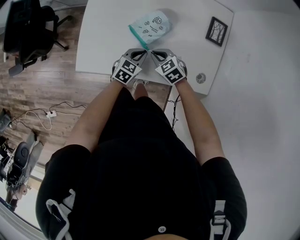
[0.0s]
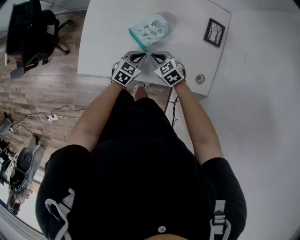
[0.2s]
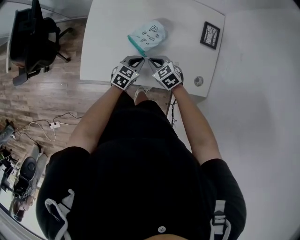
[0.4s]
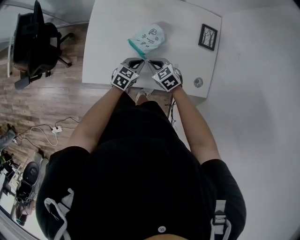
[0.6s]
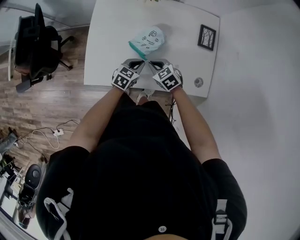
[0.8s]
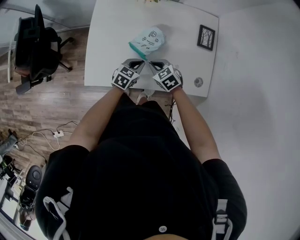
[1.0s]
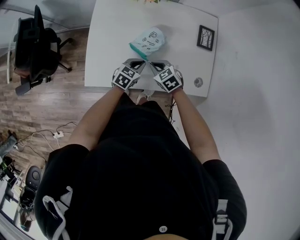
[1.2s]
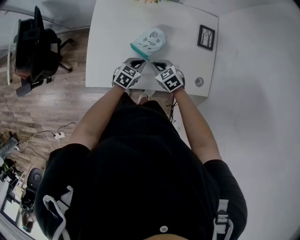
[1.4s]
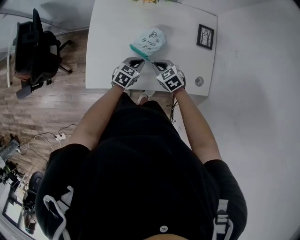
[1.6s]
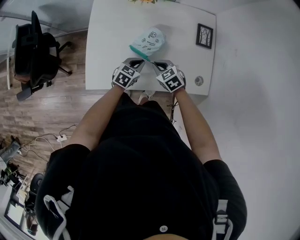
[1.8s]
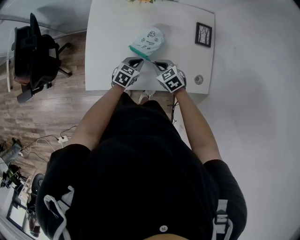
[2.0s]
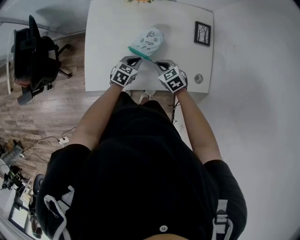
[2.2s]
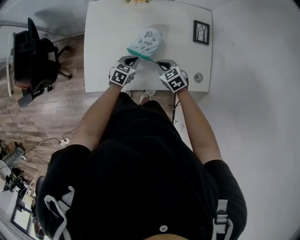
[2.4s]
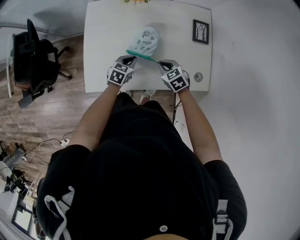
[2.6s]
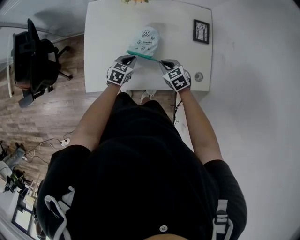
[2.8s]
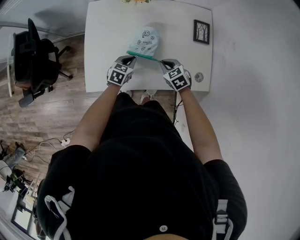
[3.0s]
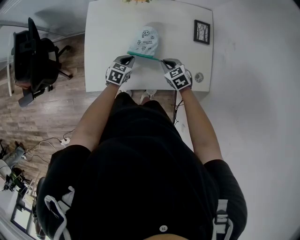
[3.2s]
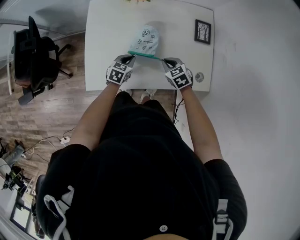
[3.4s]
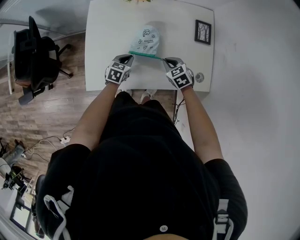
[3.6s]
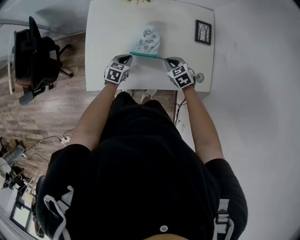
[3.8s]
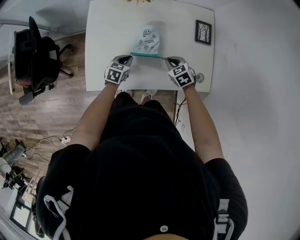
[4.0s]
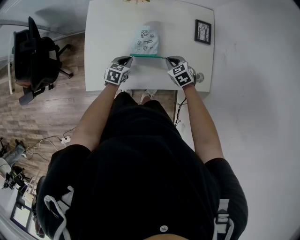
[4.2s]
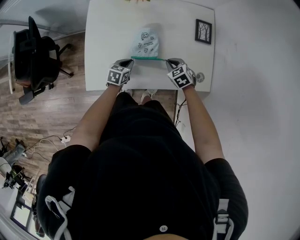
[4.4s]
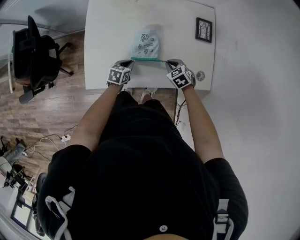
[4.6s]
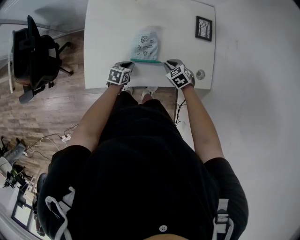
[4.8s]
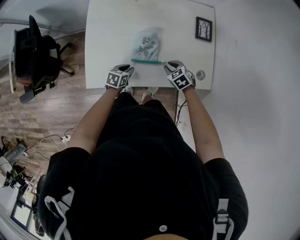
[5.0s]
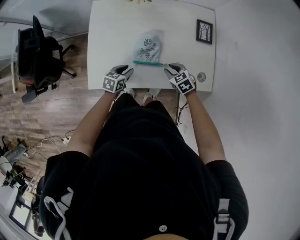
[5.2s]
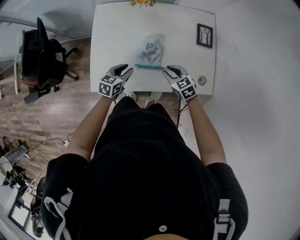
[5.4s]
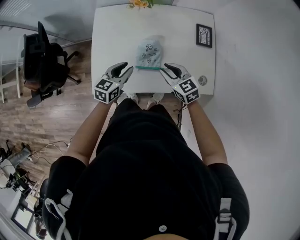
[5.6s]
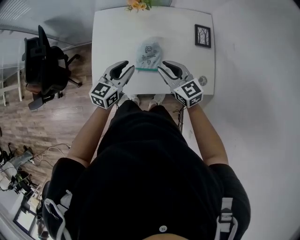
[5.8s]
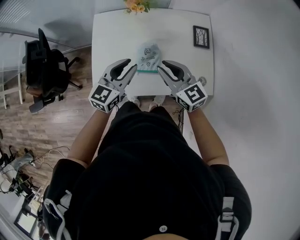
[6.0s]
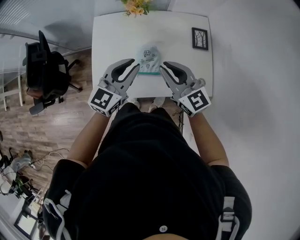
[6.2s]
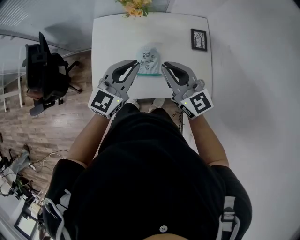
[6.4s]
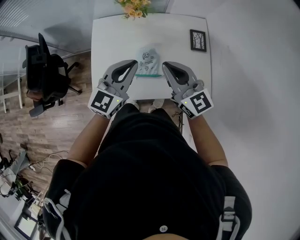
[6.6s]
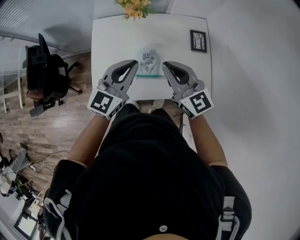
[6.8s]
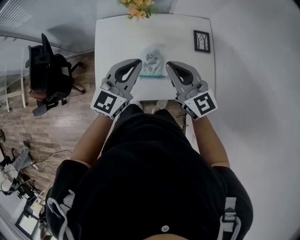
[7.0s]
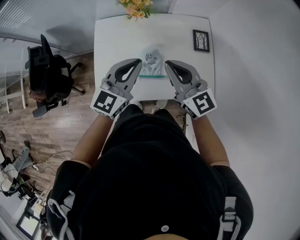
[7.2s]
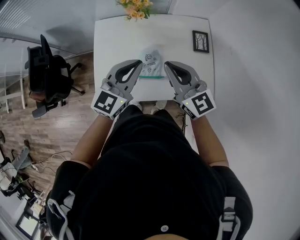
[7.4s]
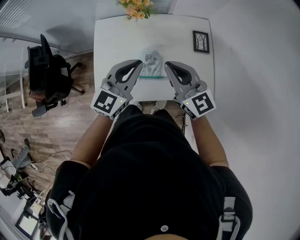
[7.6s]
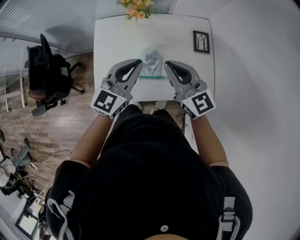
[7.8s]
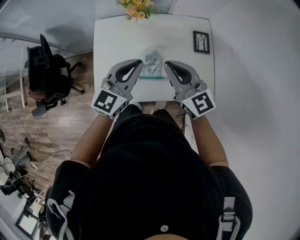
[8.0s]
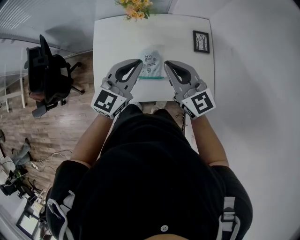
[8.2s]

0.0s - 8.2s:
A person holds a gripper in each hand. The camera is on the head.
0.0s - 1.6s: The left gripper changes place by approximately 5 cm. The right gripper ends up about 5 cm from where it was.
1.6s - 3.2s: The right gripper heads to the right, covering approximately 5 cm.
3.2s - 5.0s: The right gripper shifts by roughly 5 cm; the left gripper travels backward and downward by approximately 10 cm.
5.0s - 6.6s: Both grippers move upward, some 35 cm. The right gripper tips its fingers upward by roughly 60 degrees. The left gripper tips its fingers upward by approximately 40 degrees.
6.6s - 8.2s: The grippers make only small movements.

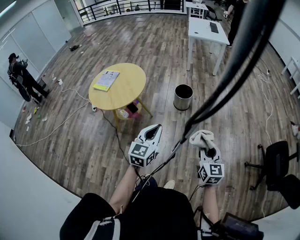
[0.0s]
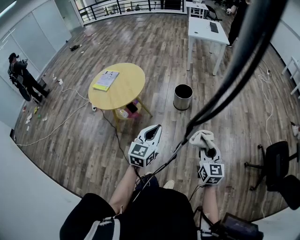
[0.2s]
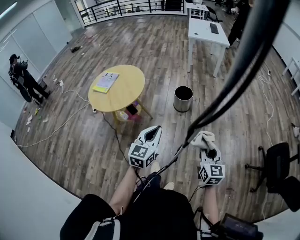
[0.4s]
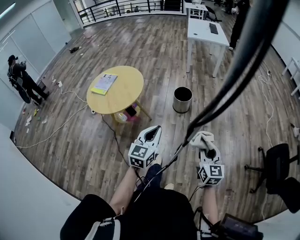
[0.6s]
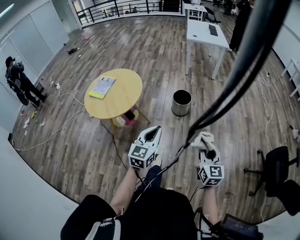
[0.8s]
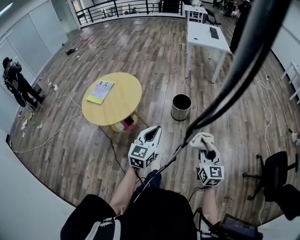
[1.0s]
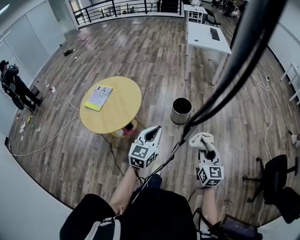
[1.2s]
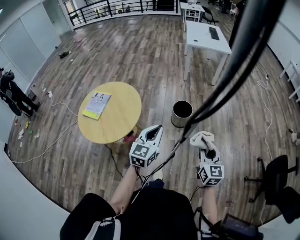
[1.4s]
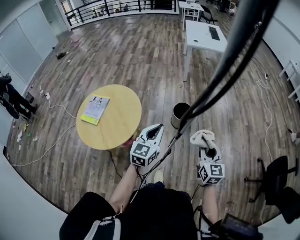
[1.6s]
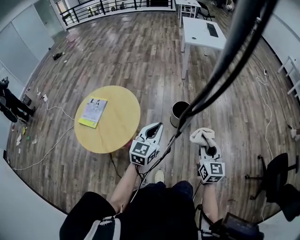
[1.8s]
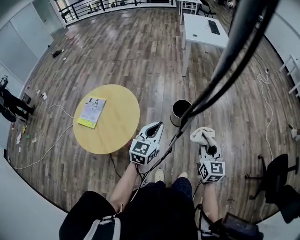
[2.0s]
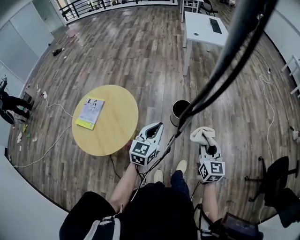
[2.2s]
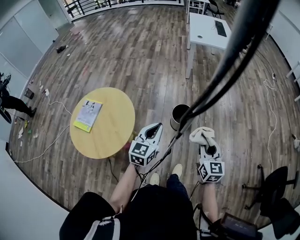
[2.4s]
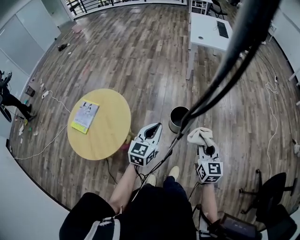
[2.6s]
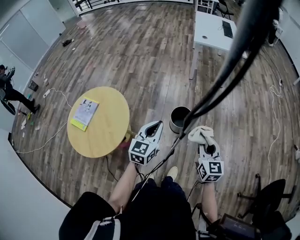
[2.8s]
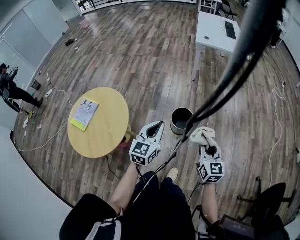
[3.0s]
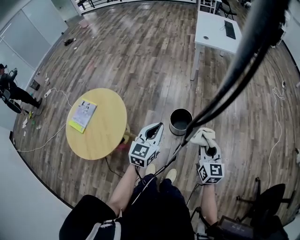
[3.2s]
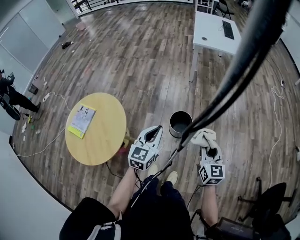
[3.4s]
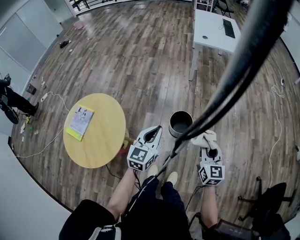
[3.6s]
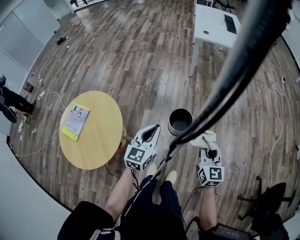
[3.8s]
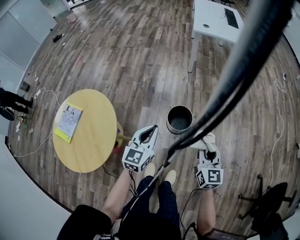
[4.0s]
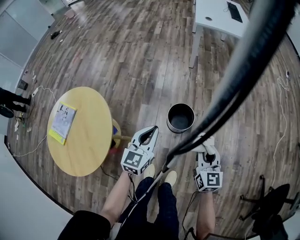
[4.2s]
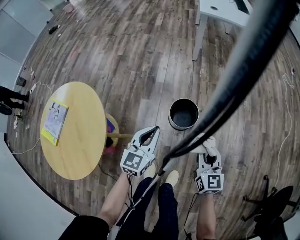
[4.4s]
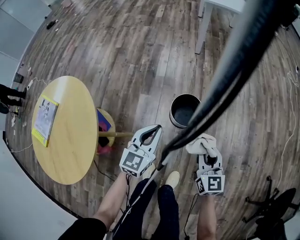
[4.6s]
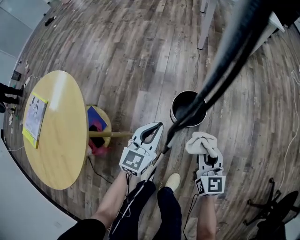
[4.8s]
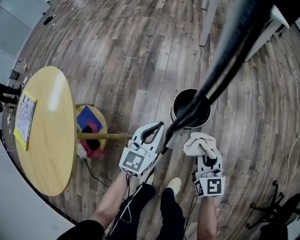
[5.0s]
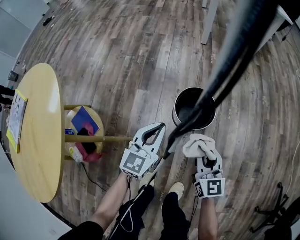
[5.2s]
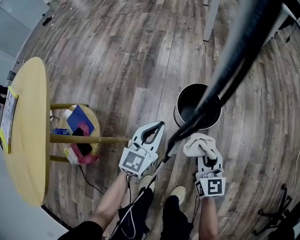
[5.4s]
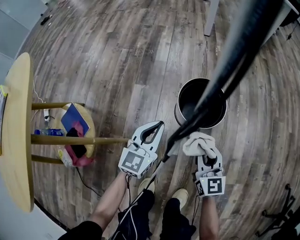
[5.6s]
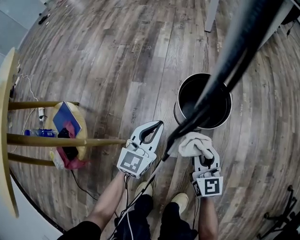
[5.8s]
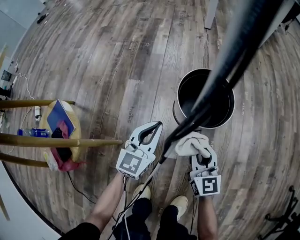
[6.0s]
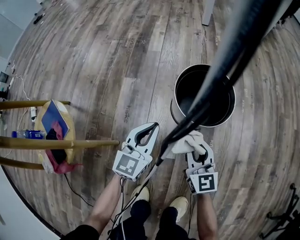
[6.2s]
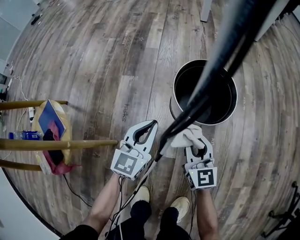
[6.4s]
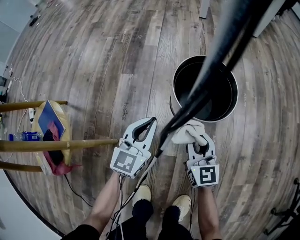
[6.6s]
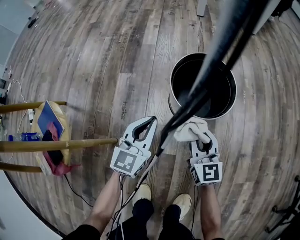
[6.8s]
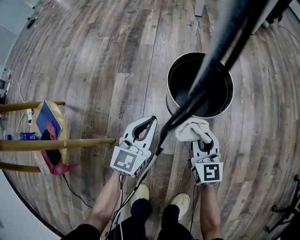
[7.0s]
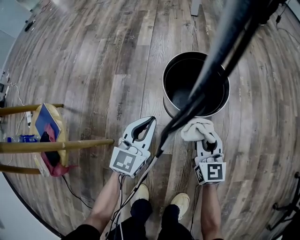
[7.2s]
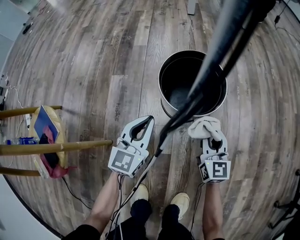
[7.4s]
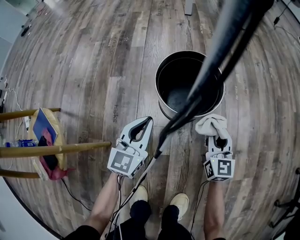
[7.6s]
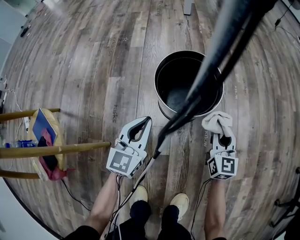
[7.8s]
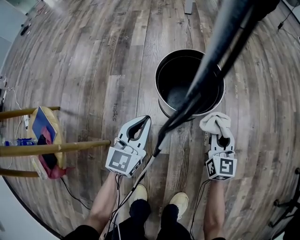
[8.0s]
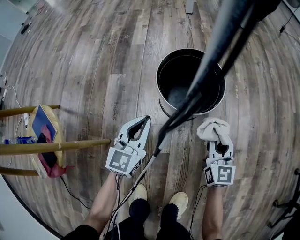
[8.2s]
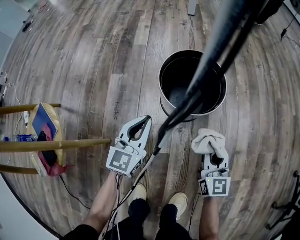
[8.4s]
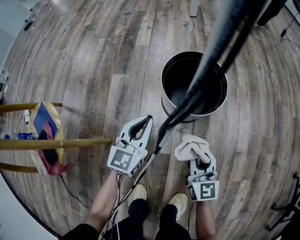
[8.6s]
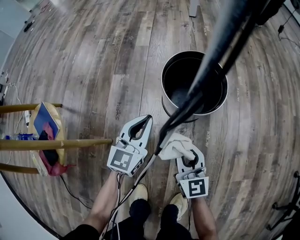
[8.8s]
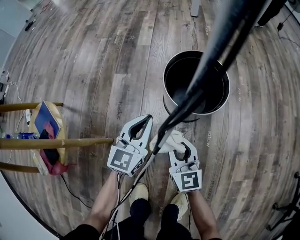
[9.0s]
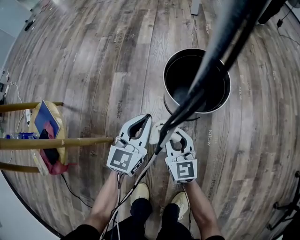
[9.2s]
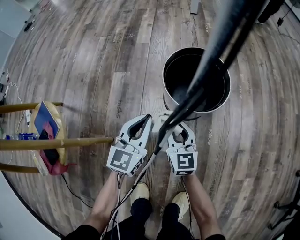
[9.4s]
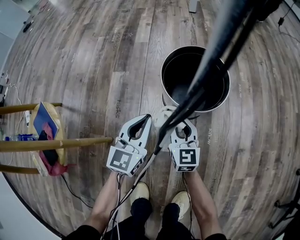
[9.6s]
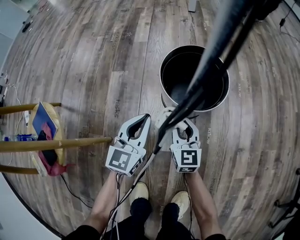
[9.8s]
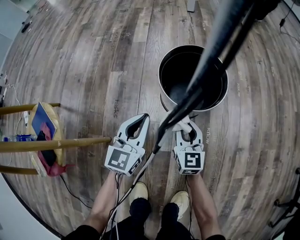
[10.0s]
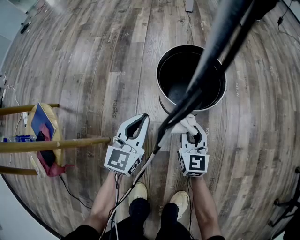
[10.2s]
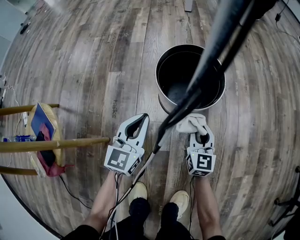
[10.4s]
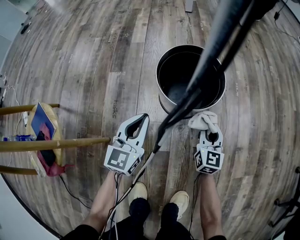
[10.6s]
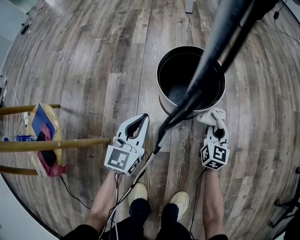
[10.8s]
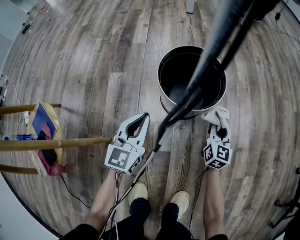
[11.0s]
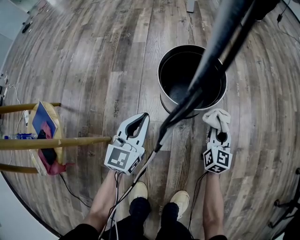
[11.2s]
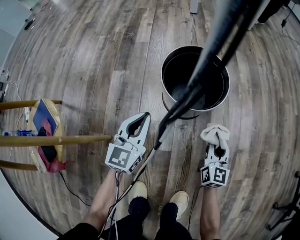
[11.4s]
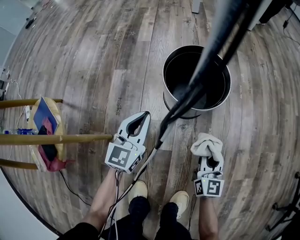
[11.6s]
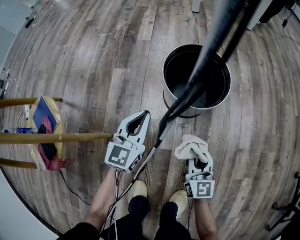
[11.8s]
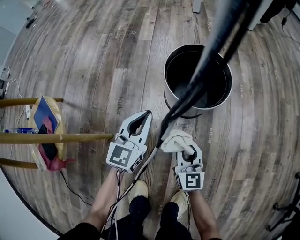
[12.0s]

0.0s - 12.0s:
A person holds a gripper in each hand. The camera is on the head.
0.0s - 1.6s: Both grippers move forward, some 30 cm.
1.6s - 3.0s: The two grippers go some 20 cm forward.
3.0s - 4.4s: Both grippers travel together downward and forward, about 25 cm.
4.4s - 6.0s: Both grippers travel together downward, approximately 50 cm.
6.0s - 7.6s: The right gripper heads to the right and downward, covering approximately 15 cm.
7.6s - 9.0s: The right gripper goes some 20 cm to the left and backward.
9.0s - 10.4s: The right gripper is displaced to the right, forward and downward by some 15 cm, and rotates roughly 20 degrees.
10.4s - 12.0s: The right gripper moves backward and to the left, roughly 10 cm.

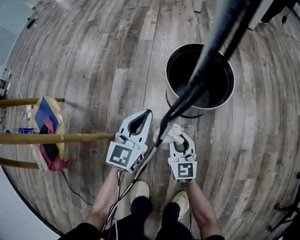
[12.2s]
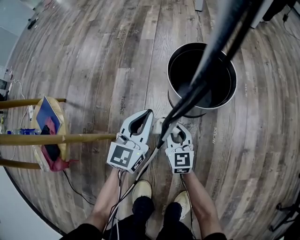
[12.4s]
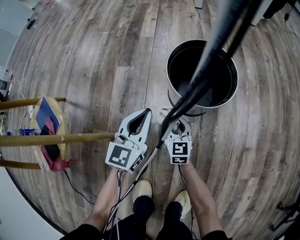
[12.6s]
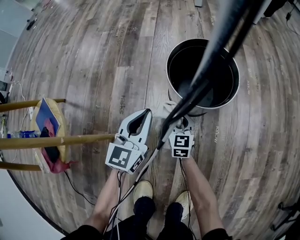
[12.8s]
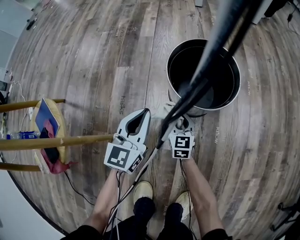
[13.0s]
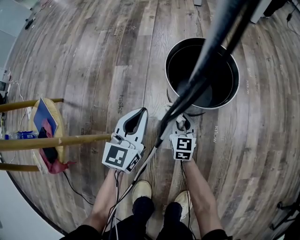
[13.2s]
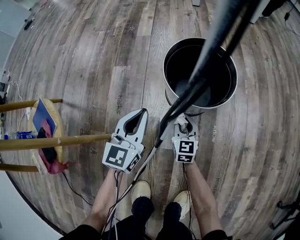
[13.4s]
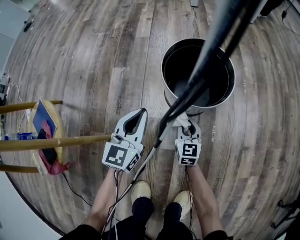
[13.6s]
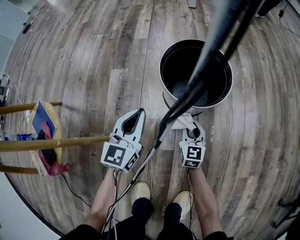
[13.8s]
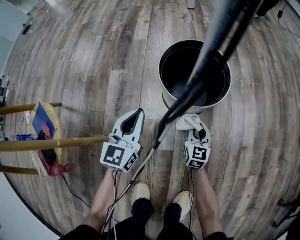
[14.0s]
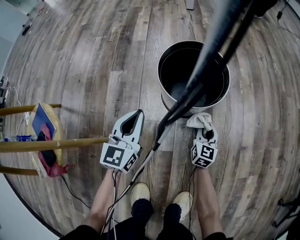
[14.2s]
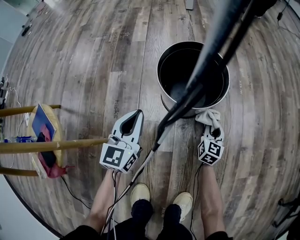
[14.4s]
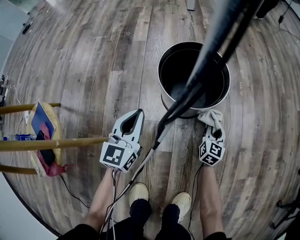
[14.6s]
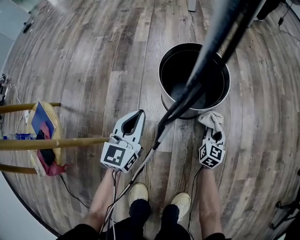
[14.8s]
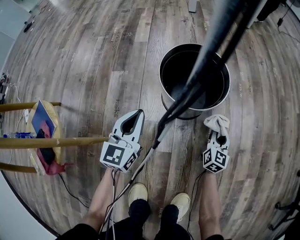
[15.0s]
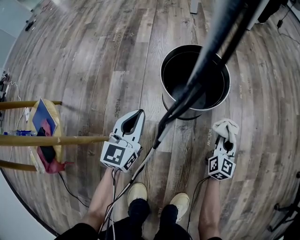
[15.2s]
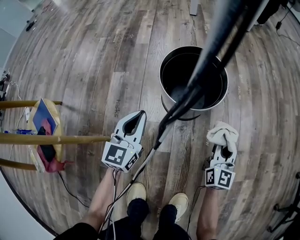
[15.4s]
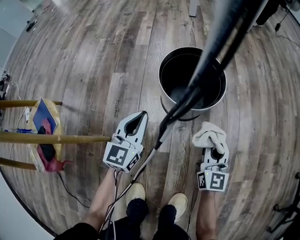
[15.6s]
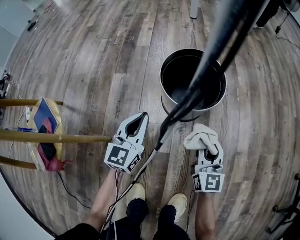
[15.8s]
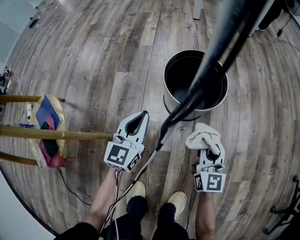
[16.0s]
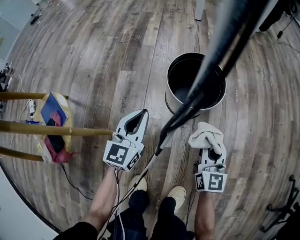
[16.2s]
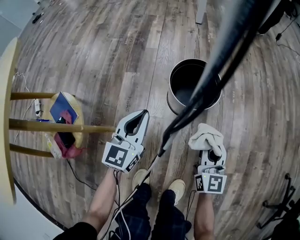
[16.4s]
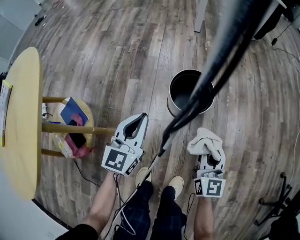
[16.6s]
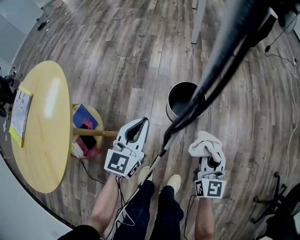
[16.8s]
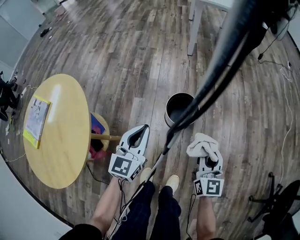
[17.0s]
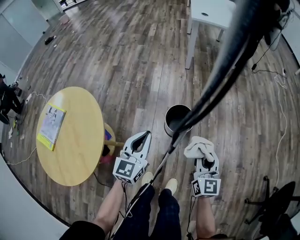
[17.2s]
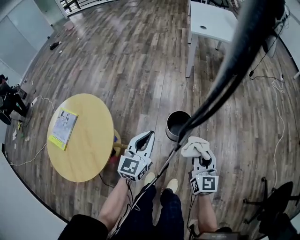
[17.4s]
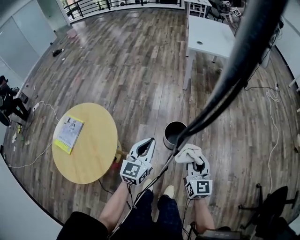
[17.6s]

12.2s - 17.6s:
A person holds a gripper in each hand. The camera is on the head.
12.2s - 13.6s: The right gripper goes about 10 cm downward and forward.
13.6s - 15.0s: The right gripper moves to the right, some 20 cm, and swivels about 30 degrees.
15.0s - 16.2s: The right gripper moves upward and to the left, some 20 cm, and swivels about 20 degrees. Meanwhile the left gripper heads upward, covering about 5 cm.
16.2s - 17.6s: The grippers both shift upward by approximately 60 cm.
